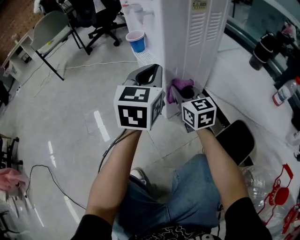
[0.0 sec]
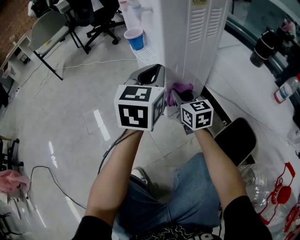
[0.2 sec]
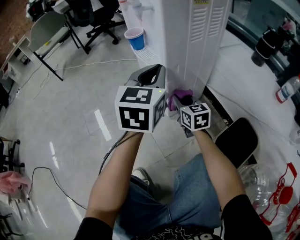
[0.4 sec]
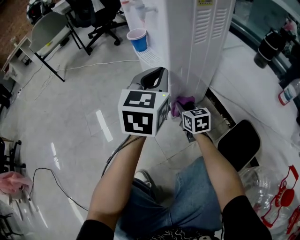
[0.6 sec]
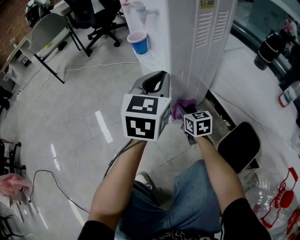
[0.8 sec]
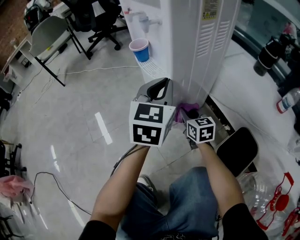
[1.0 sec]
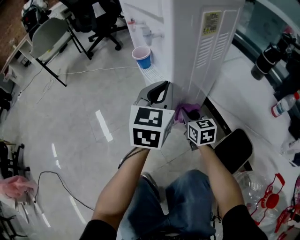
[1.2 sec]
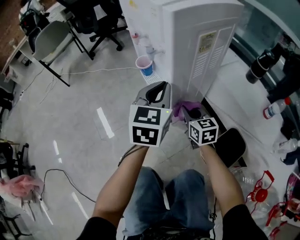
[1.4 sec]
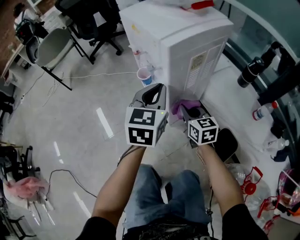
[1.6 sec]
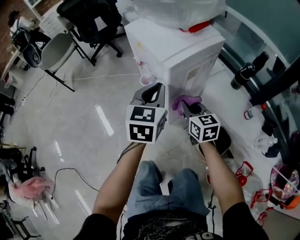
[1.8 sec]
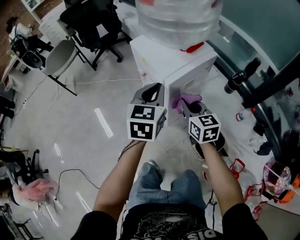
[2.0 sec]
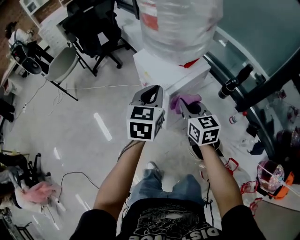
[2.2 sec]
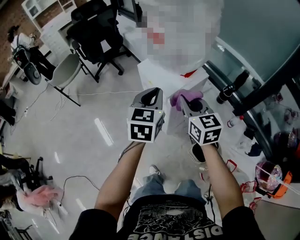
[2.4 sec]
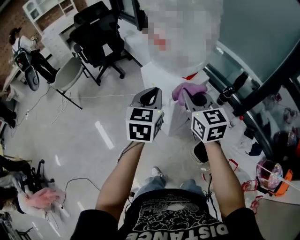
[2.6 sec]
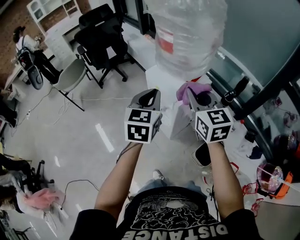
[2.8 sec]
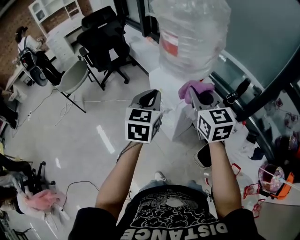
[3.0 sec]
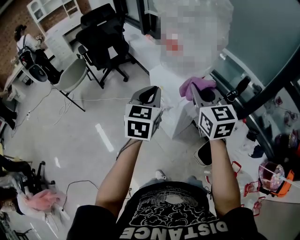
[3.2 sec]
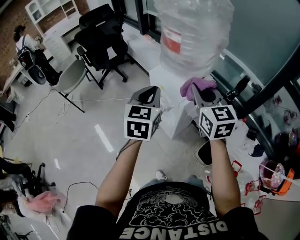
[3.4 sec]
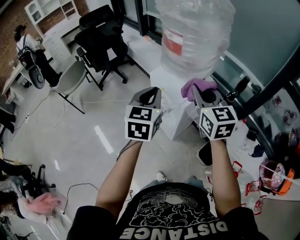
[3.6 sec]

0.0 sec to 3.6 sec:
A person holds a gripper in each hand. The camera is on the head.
0.0 sec to 1.8 sec: Both grippers move upward, approximately 25 cm.
1.8 sec to 3.6 sec: The left gripper is displaced upward by roughly 25 cm. The right gripper shifts approximately 40 cm upward, and changes its angle by about 20 degrees.

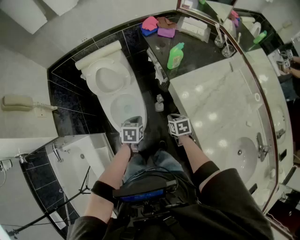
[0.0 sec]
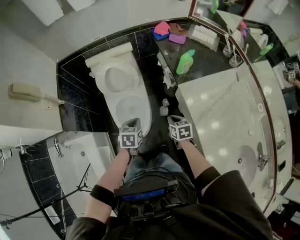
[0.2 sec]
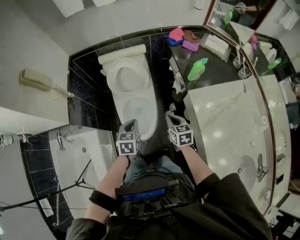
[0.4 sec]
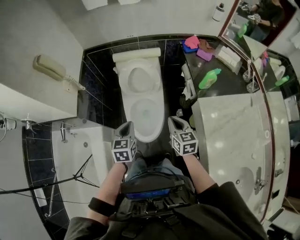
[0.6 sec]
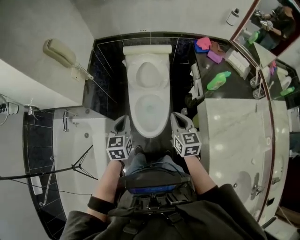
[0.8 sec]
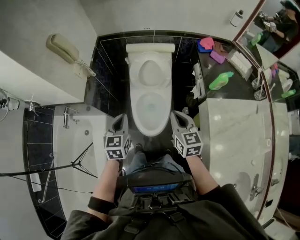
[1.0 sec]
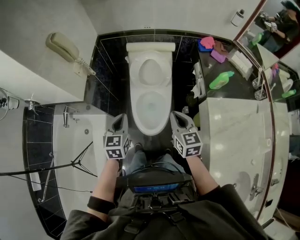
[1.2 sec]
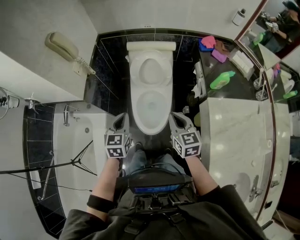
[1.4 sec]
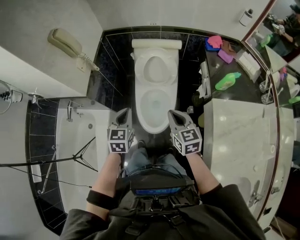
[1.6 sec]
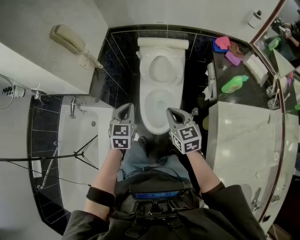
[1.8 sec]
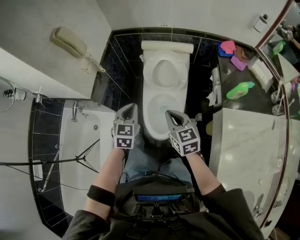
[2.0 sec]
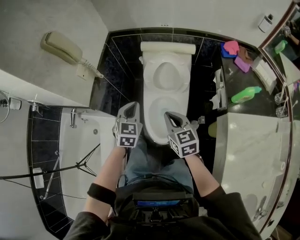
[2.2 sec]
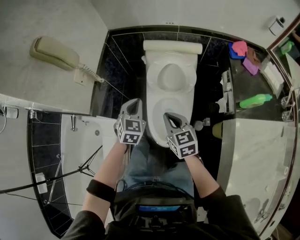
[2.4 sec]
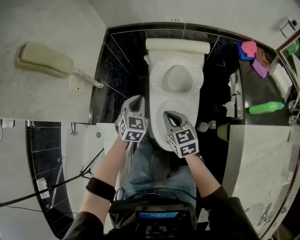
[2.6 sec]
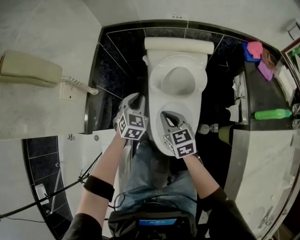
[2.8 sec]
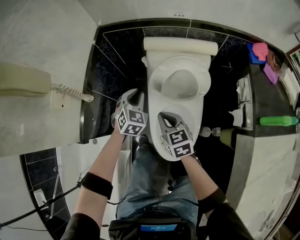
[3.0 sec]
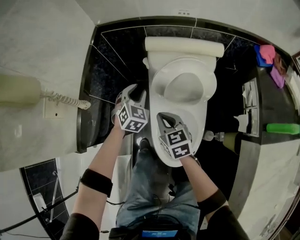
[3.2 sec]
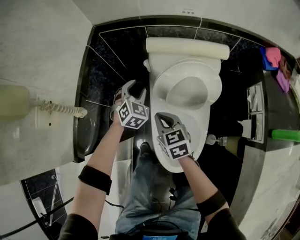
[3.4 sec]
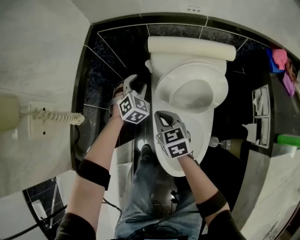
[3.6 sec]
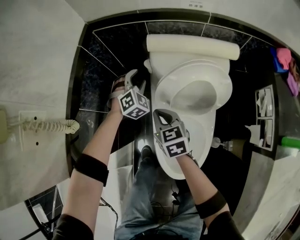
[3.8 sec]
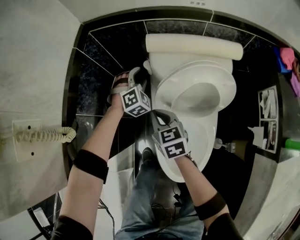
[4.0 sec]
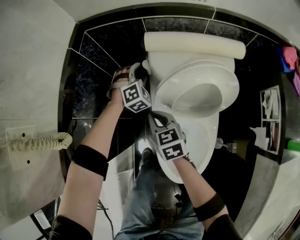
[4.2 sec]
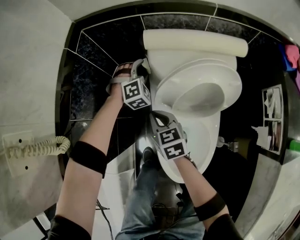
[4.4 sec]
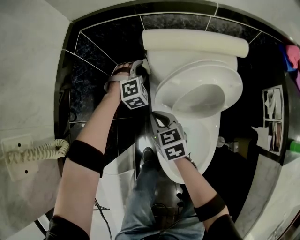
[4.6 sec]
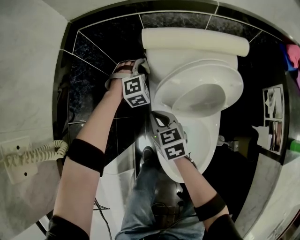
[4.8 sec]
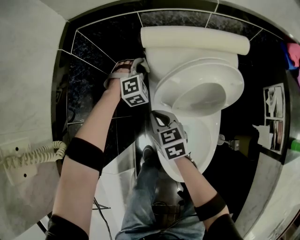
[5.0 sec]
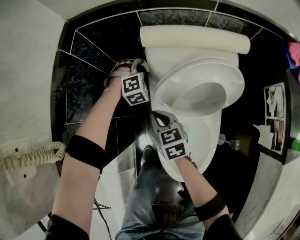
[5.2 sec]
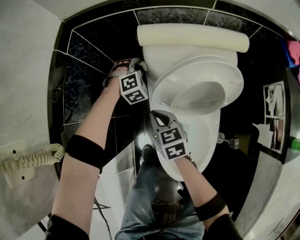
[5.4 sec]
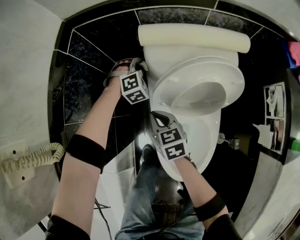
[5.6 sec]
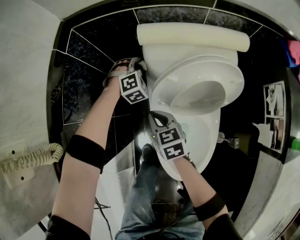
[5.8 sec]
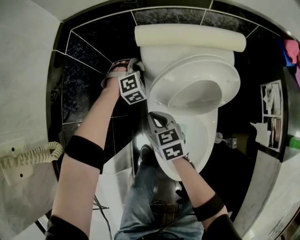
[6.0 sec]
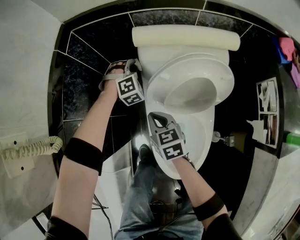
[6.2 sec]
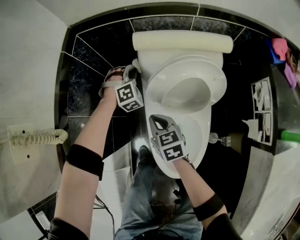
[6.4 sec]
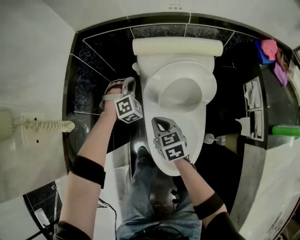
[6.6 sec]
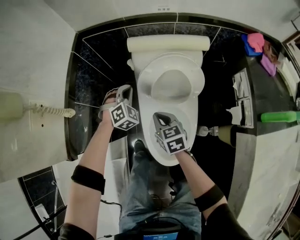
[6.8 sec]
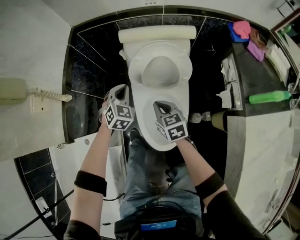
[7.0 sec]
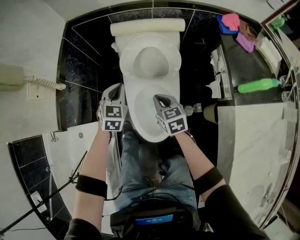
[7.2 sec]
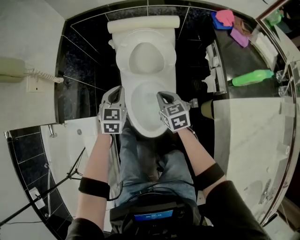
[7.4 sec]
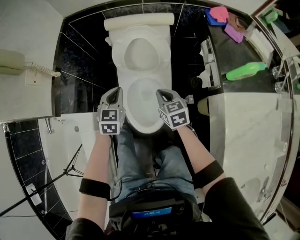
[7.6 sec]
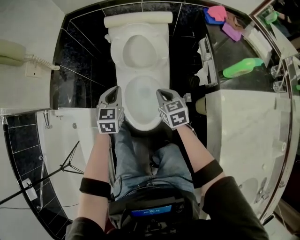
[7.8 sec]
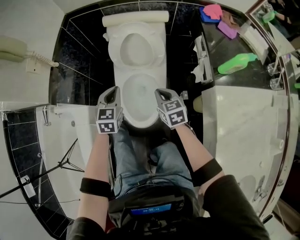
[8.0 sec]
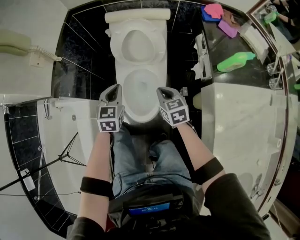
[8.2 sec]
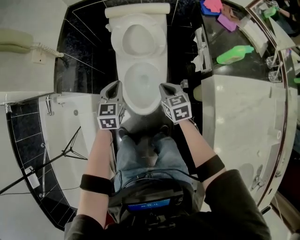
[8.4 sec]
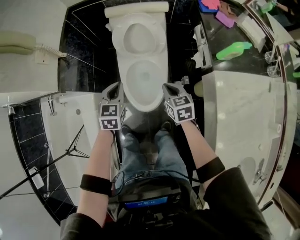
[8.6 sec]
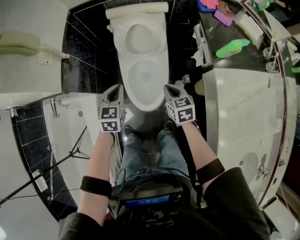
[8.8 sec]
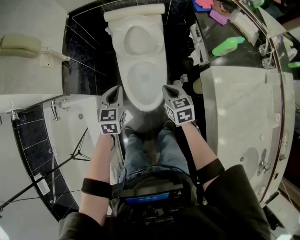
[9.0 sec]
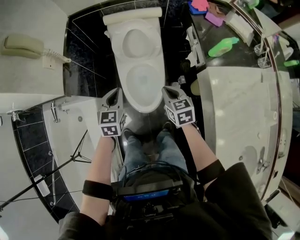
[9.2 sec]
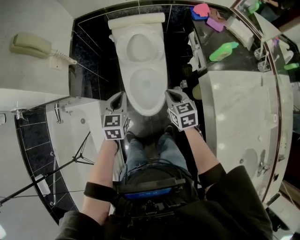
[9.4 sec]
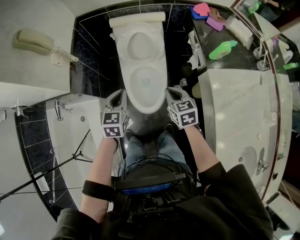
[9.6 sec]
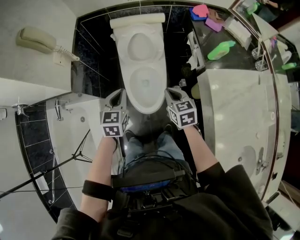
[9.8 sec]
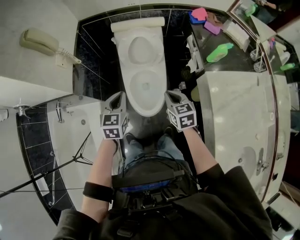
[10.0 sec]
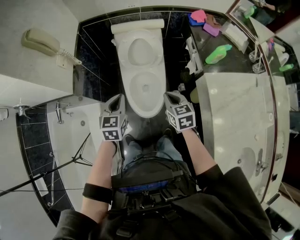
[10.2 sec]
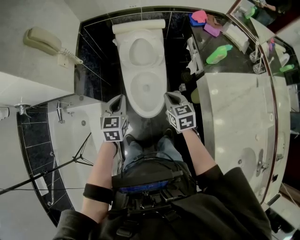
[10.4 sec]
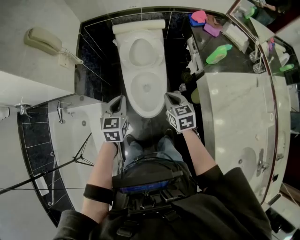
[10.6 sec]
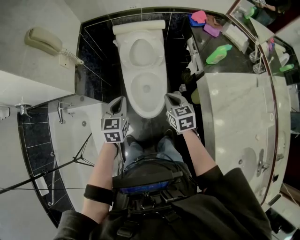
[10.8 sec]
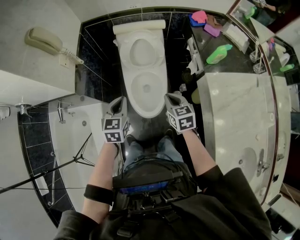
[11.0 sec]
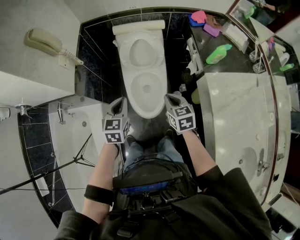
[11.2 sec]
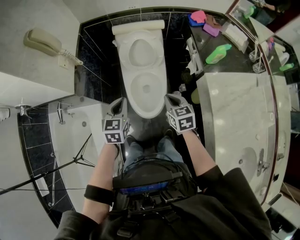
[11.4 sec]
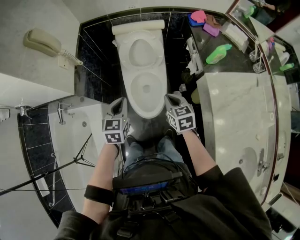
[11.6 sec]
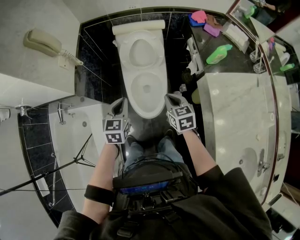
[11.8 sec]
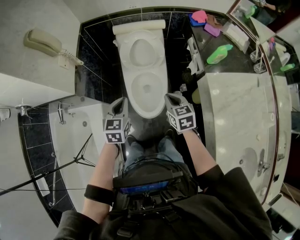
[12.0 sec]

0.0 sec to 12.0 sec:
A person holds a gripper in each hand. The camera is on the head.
0.0 sec to 1.6 sec: The left gripper moves approximately 30 cm, and changes its angle by about 40 degrees; the right gripper shifts roughly 20 cm upward, and turns by roughly 40 degrees.
1.6 sec to 3.0 sec: The right gripper heads forward, downward and to the left, covering some 40 cm; the left gripper goes roughly 40 cm forward and downward, and turns by about 30 degrees.
3.0 sec to 4.4 sec: The right gripper travels downward and forward by roughly 20 cm. Meanwhile the left gripper heads forward and downward, covering approximately 30 cm, rolls clockwise, seen from behind, by roughly 40 degrees, and opens.
4.4 sec to 6.0 sec: The left gripper closes.
6.0 sec to 7.6 sec: The left gripper travels backward and upward by about 50 cm, rolls counterclockwise, seen from behind, by some 60 degrees, and closes; the right gripper goes roughly 35 cm backward, to the right and upward.
7.6 sec to 9.0 sec: The two grippers go approximately 15 cm backward and upward.
9.0 sec to 10.4 sec: The left gripper is displaced upward and backward by approximately 10 cm; the right gripper heads upward, covering about 10 cm.
10.4 sec to 12.0 sec: Neither gripper changes place.

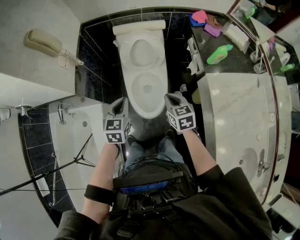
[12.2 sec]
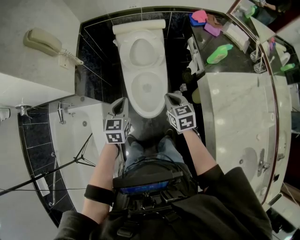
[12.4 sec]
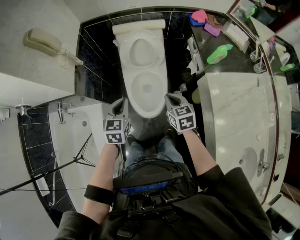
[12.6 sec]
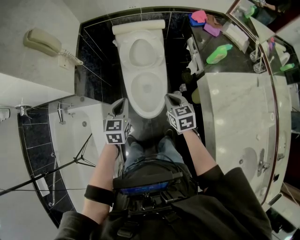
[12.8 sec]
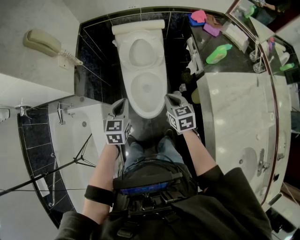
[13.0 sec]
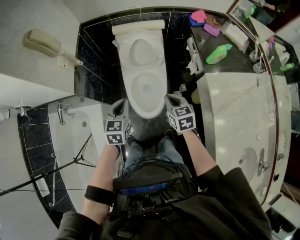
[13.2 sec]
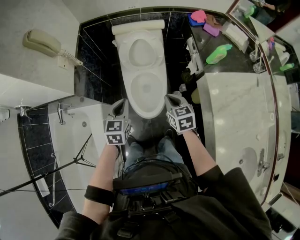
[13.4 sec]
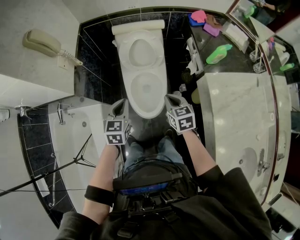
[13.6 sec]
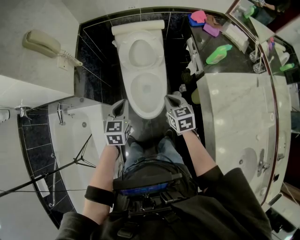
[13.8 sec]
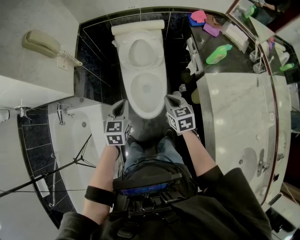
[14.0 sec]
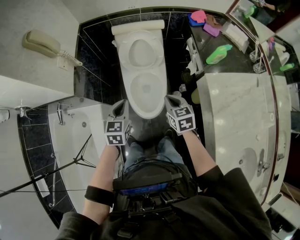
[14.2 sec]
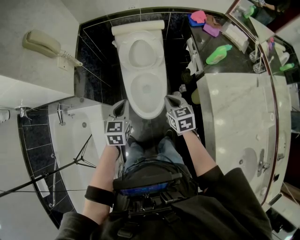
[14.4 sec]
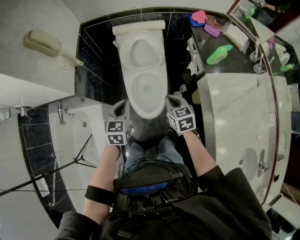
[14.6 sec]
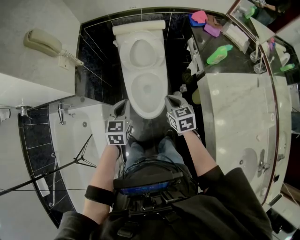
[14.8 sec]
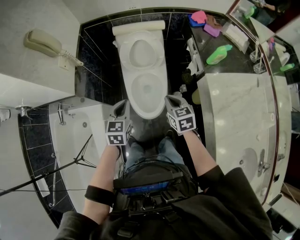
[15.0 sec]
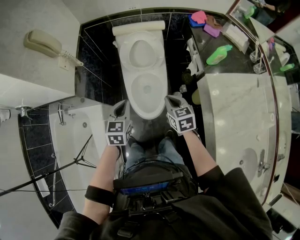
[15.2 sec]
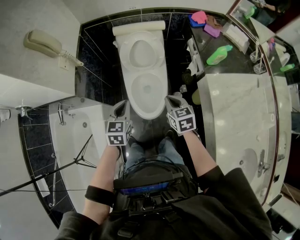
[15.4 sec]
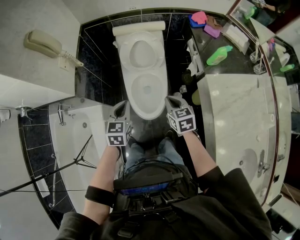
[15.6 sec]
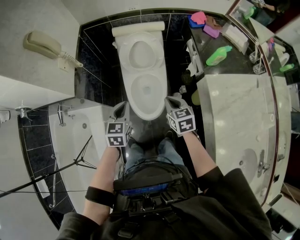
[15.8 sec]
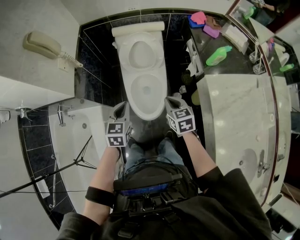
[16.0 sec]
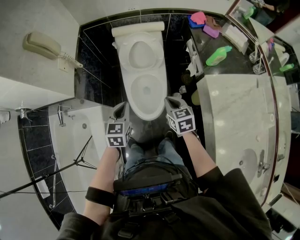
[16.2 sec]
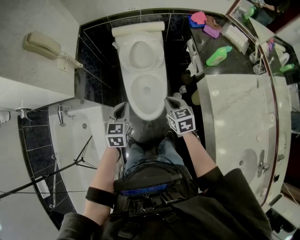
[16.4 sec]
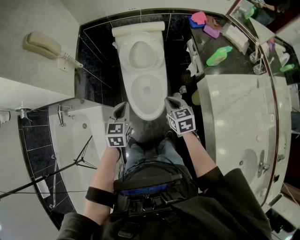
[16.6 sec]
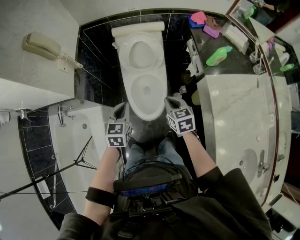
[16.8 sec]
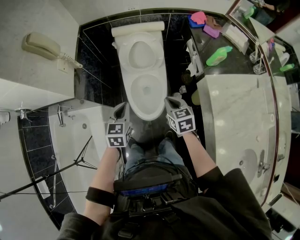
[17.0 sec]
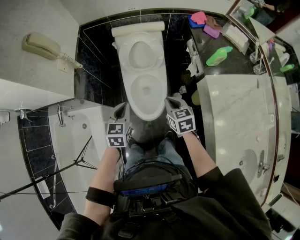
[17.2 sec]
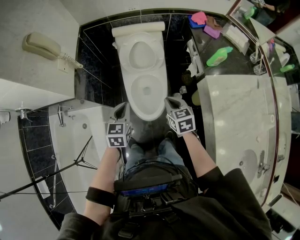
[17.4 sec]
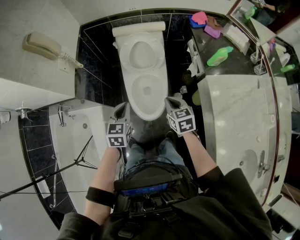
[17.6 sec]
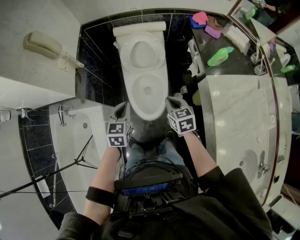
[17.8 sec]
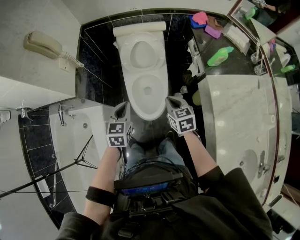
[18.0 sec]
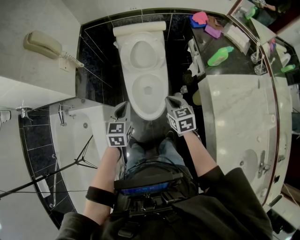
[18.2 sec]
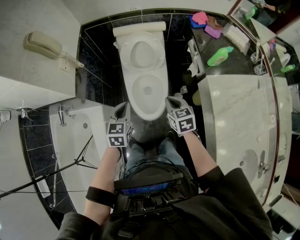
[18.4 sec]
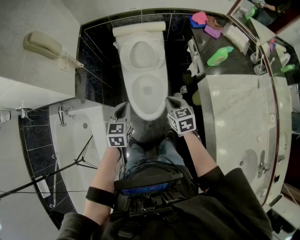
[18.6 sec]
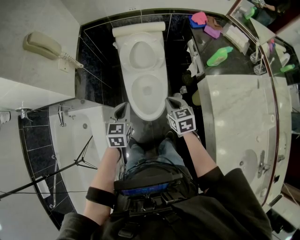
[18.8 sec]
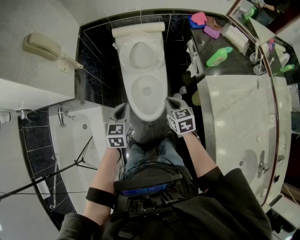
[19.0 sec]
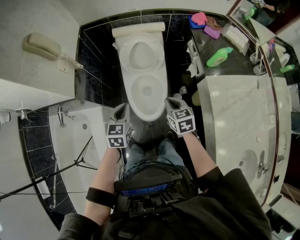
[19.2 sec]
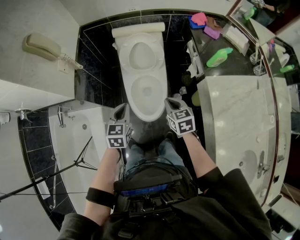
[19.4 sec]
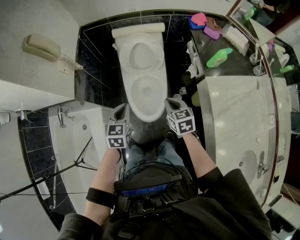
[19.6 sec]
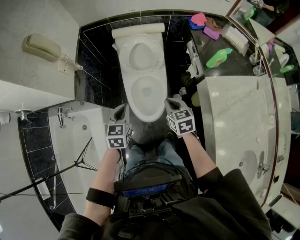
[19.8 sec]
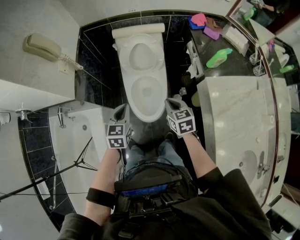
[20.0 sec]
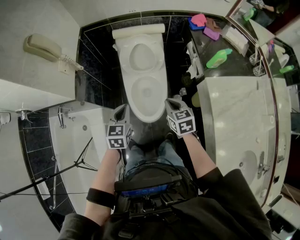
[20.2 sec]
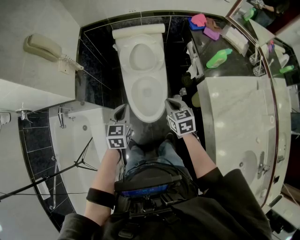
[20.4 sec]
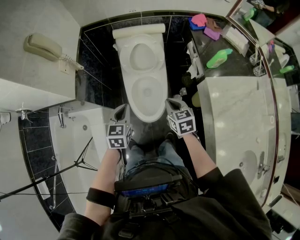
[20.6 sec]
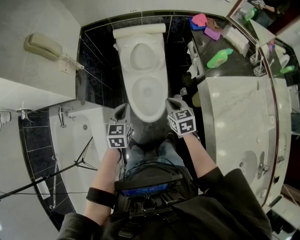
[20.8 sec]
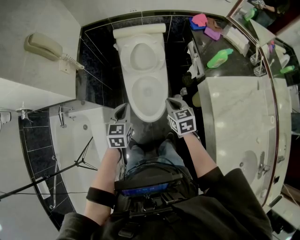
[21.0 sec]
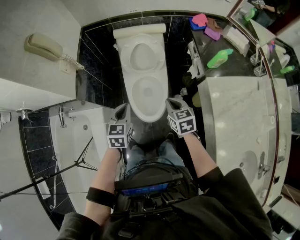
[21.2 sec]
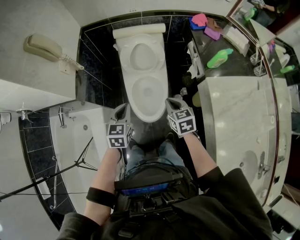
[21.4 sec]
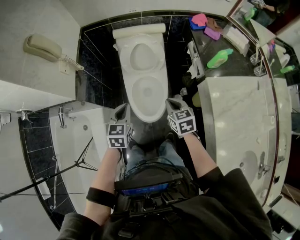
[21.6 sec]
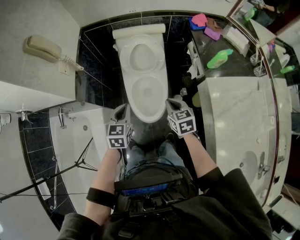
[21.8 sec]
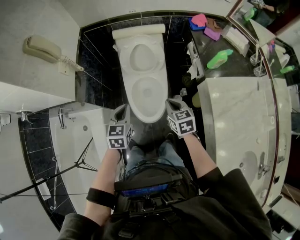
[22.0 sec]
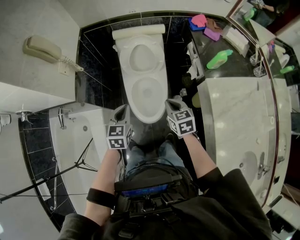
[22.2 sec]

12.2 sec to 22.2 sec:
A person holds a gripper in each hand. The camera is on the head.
12.2 sec to 15.0 sec: Both grippers stay put.
15.0 sec to 16.4 sec: The two grippers keep their place.
16.4 sec to 22.2 sec: Both grippers stay about where they are.
